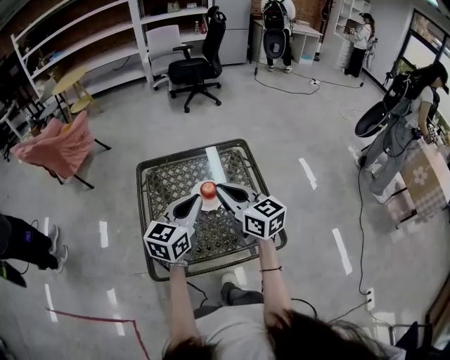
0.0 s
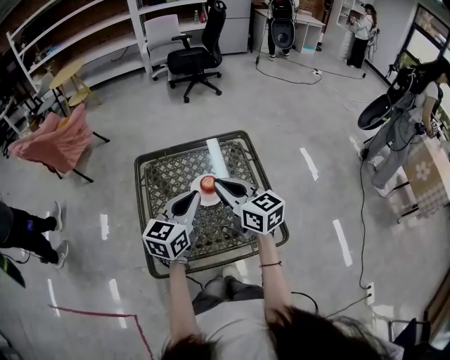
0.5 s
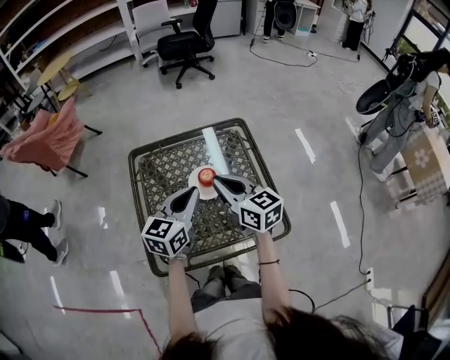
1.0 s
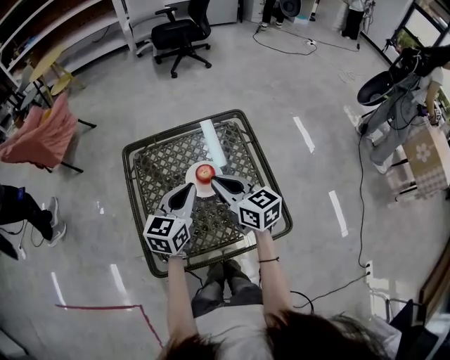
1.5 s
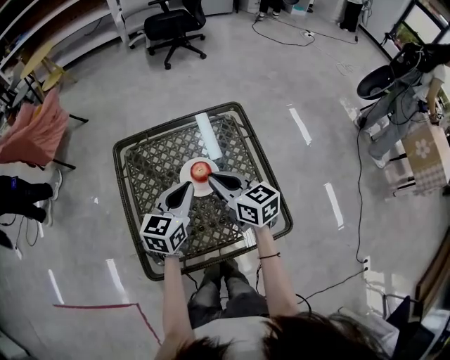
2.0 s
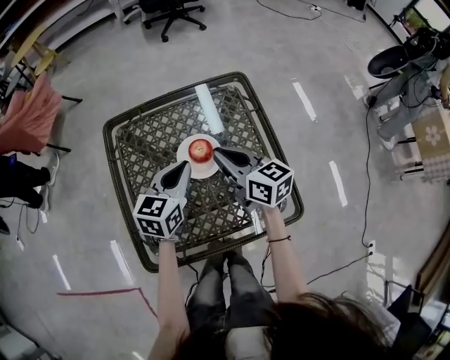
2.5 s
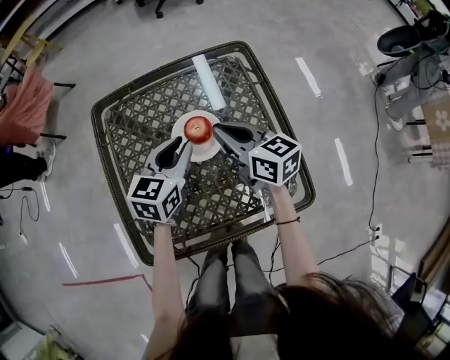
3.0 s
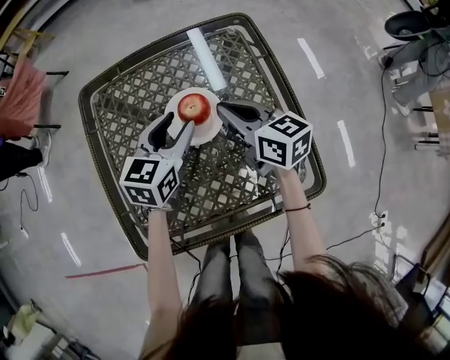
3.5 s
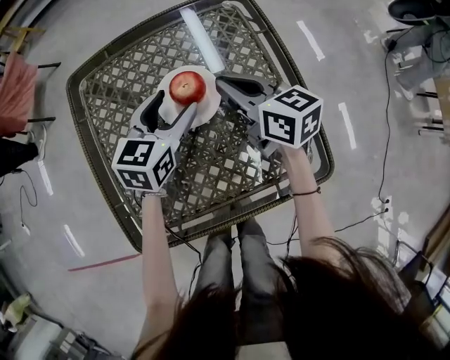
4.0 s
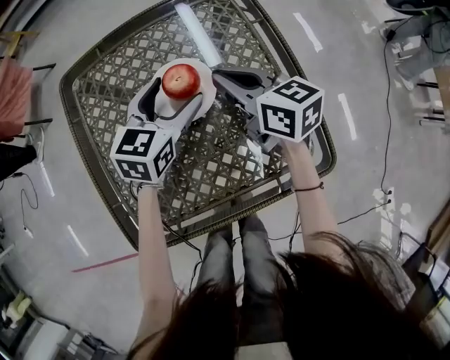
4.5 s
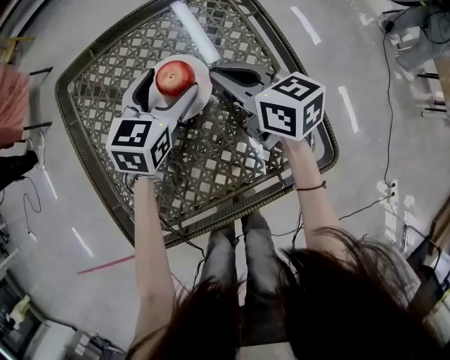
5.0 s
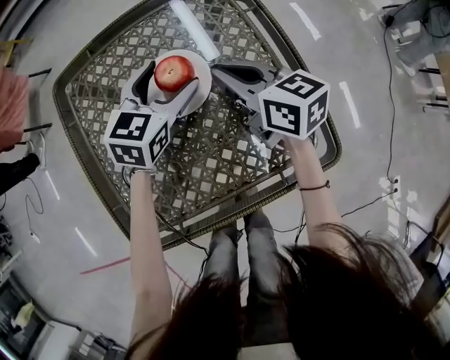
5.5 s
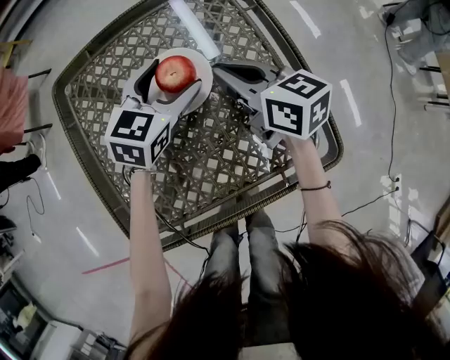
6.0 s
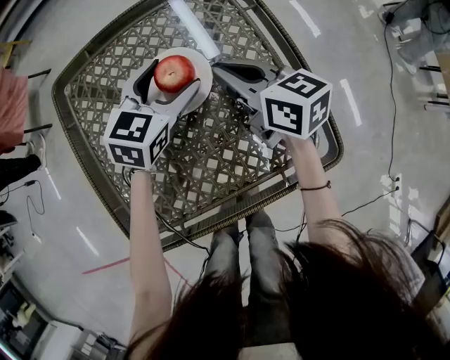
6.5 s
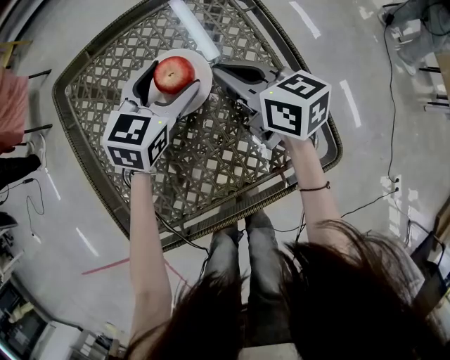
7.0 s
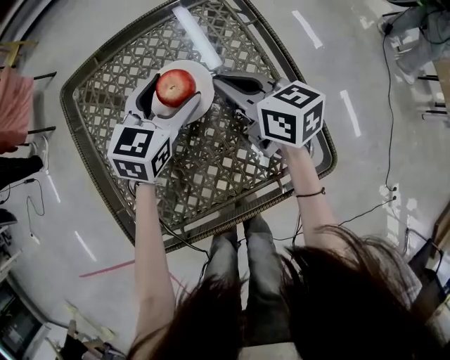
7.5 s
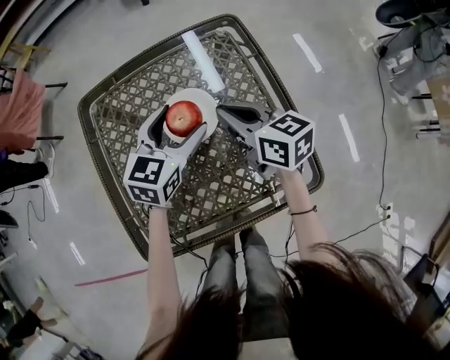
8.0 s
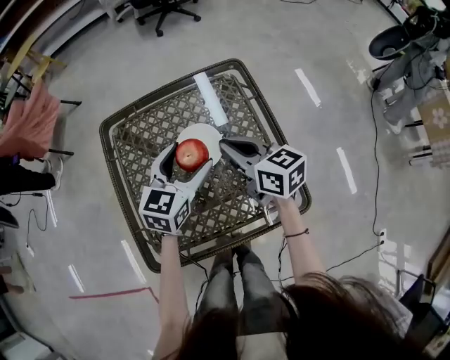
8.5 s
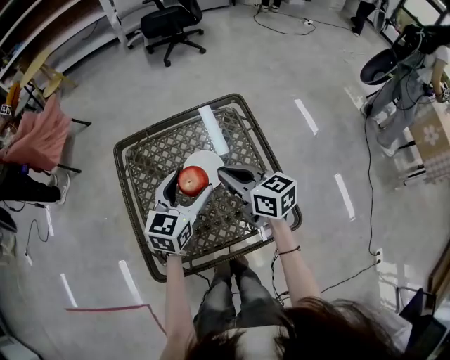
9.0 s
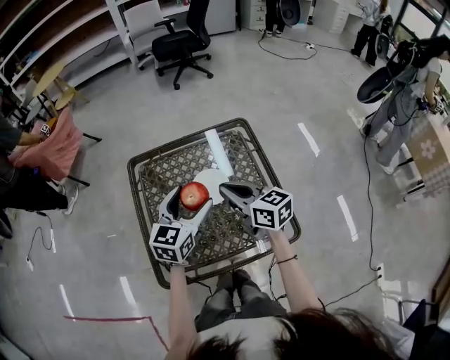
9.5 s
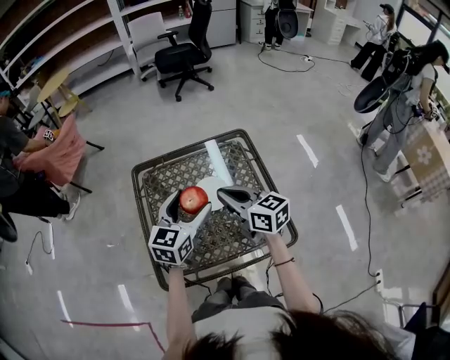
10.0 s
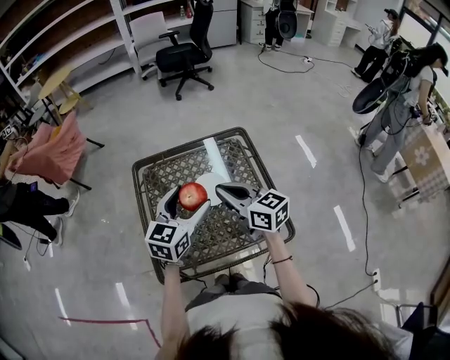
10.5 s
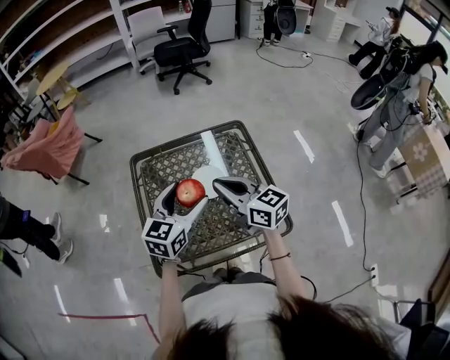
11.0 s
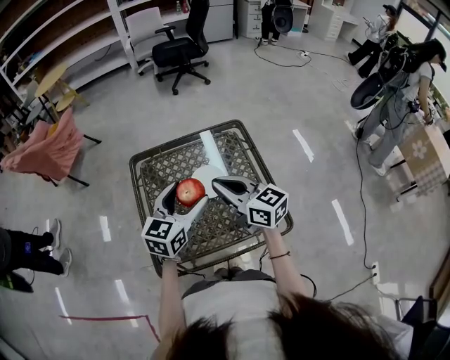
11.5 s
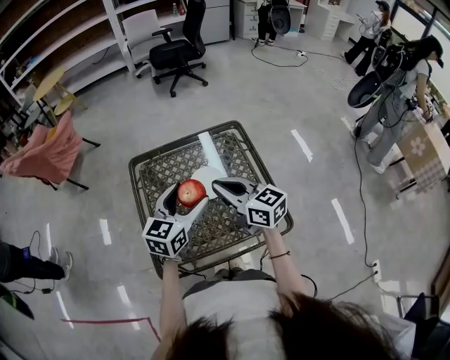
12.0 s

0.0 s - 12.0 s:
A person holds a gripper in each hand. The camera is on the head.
0.0 s - 2.0 s: The grippers both shift downward and forward by some 15 cm.
2.0 s - 4.0 s: The right gripper travels downward and forward by some 15 cm, while the left gripper heads downward, covering about 15 cm, and opens.
4.0 s - 6.0 s: There are only small adjustments of the grippers.
6.0 s - 8.0 s: The left gripper moves upward, some 5 cm.
8.0 s - 10.0 s: The left gripper travels upward and backward by about 20 cm, while the right gripper heads upward, covering roughly 15 cm.
10.0 s - 12.0 s: The grippers make only small movements.

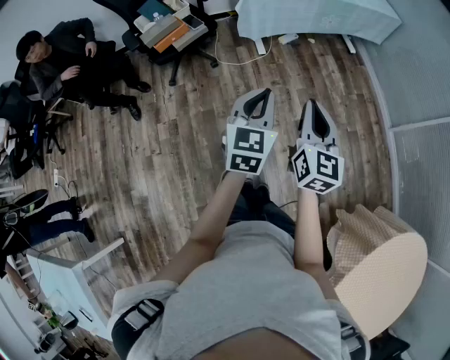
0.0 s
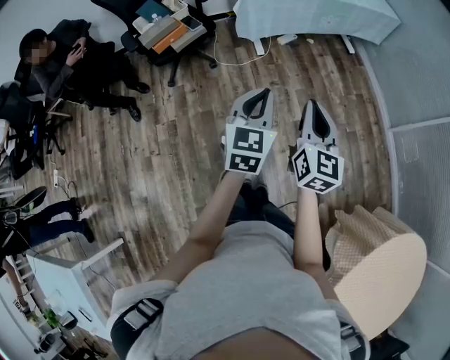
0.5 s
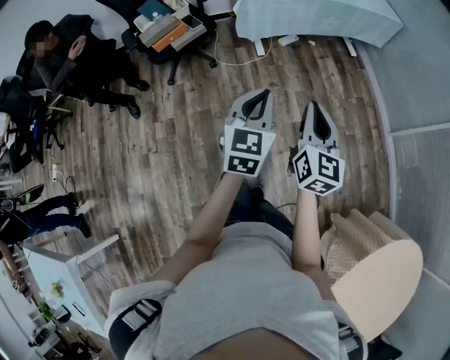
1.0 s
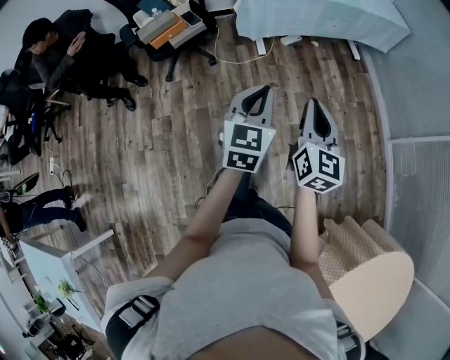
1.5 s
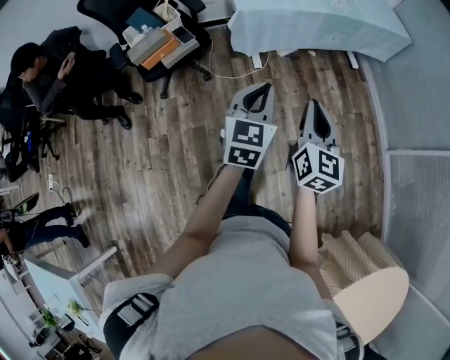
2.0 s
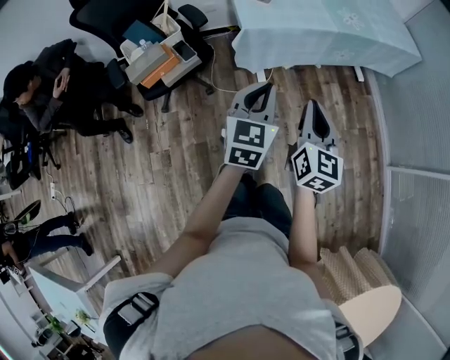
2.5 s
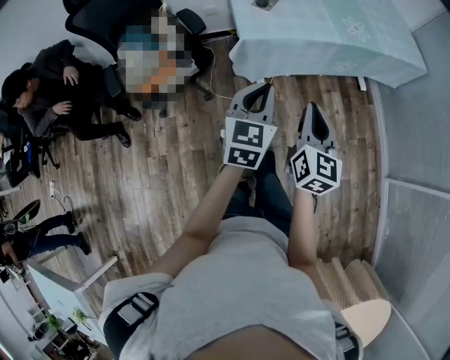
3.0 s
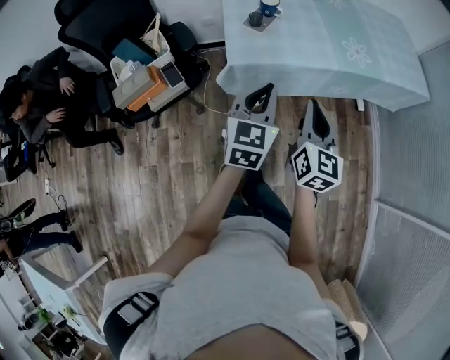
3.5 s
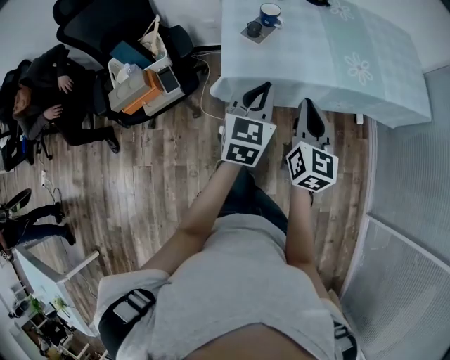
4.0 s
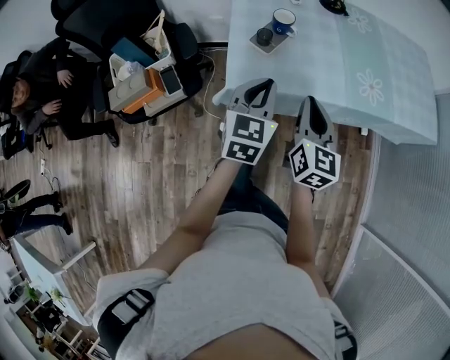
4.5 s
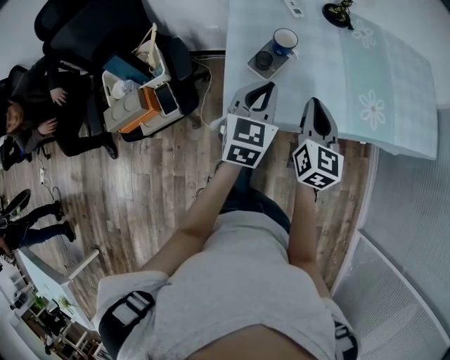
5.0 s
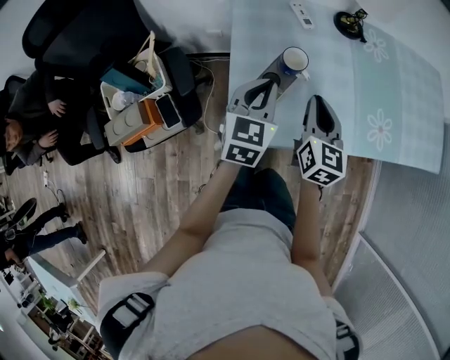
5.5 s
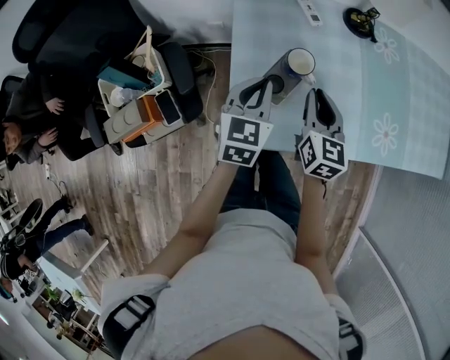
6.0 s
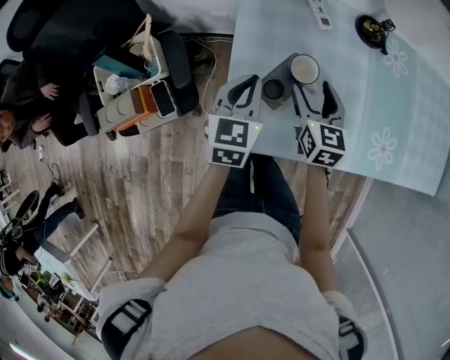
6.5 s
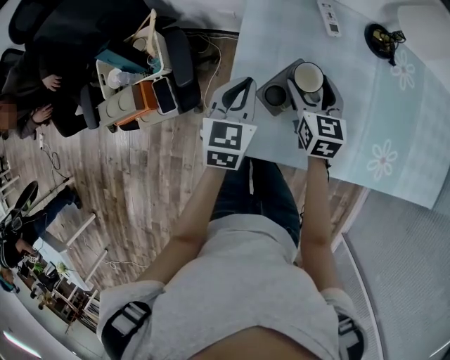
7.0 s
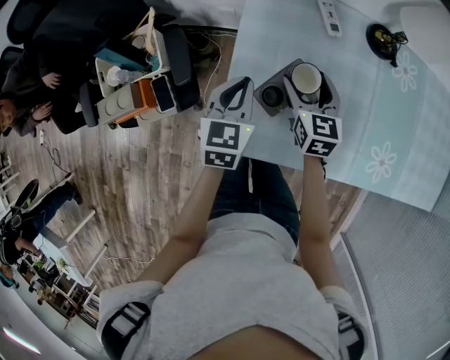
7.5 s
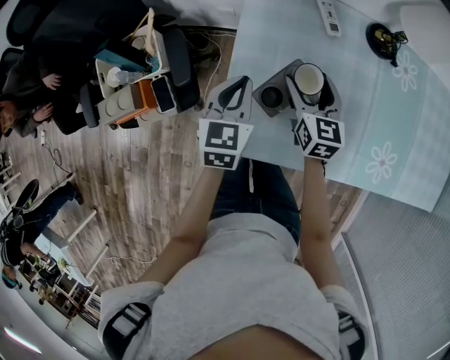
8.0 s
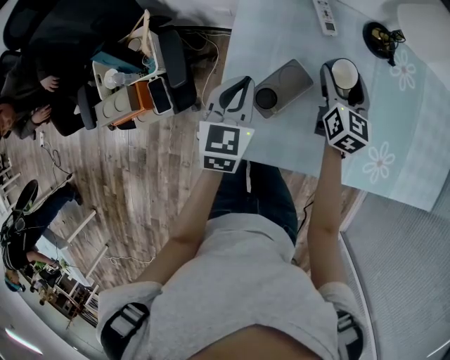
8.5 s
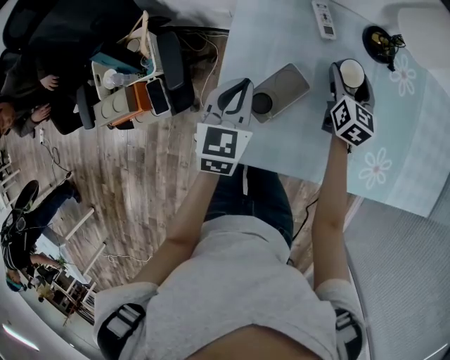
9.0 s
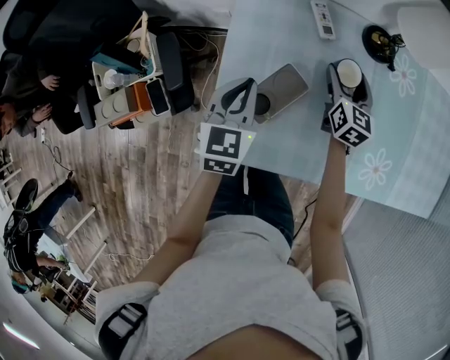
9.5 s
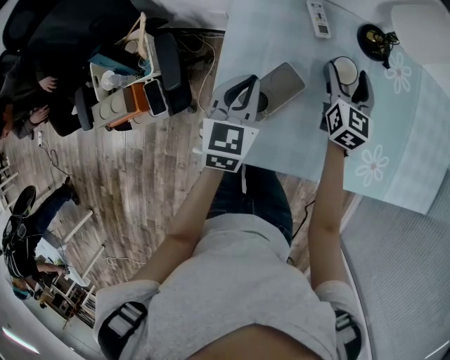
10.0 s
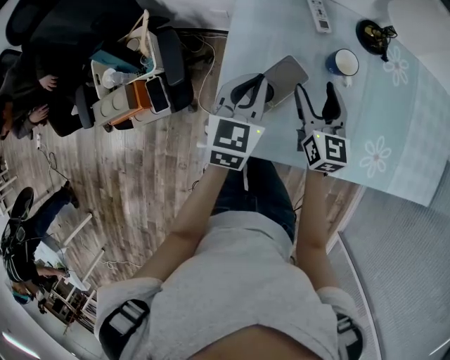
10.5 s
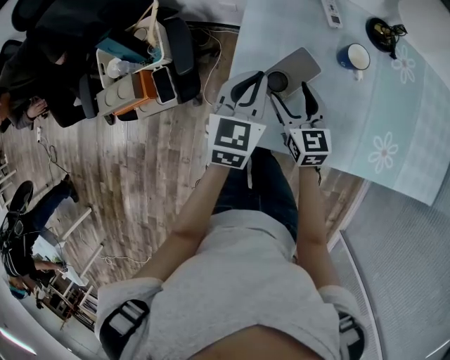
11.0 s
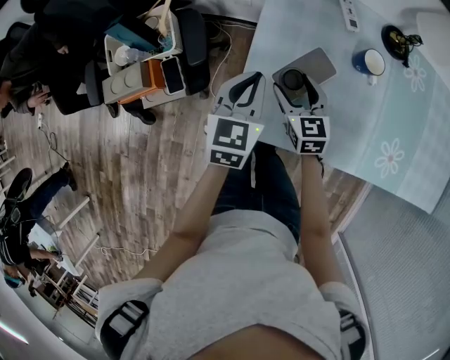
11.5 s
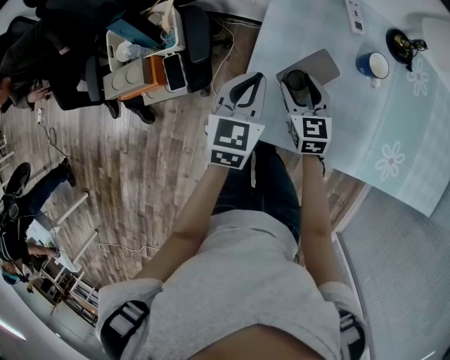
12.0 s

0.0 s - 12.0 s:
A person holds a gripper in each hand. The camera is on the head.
0.0 s - 2.0 s: The two grippers go about 20 cm forward.
2.0 s - 4.0 s: The pair of grippers is taken forward, about 40 cm.
4.0 s - 6.0 s: The two grippers go roughly 30 cm forward.
6.0 s - 8.0 s: The left gripper shifts by some 5 cm; the right gripper goes about 10 cm forward and downward, and opens.
8.0 s - 10.0 s: The right gripper shifts about 15 cm to the right and forward; the left gripper ends up about 5 cm from where it was.
10.0 s - 12.0 s: The left gripper goes roughly 10 cm to the left and backward. The right gripper travels to the left and backward by some 25 cm, and turns by some 30 degrees.

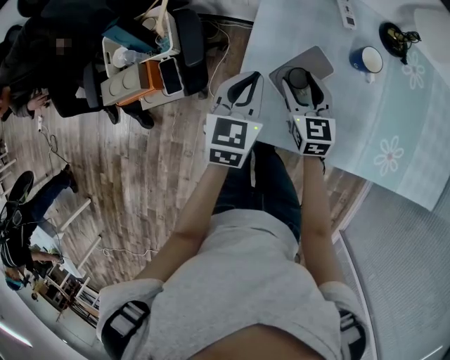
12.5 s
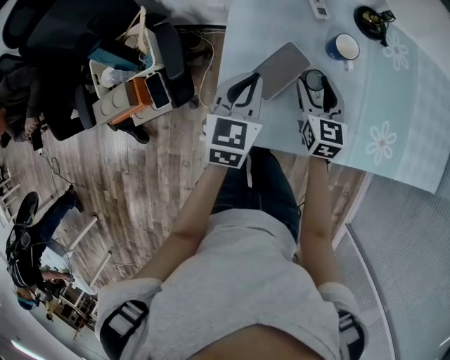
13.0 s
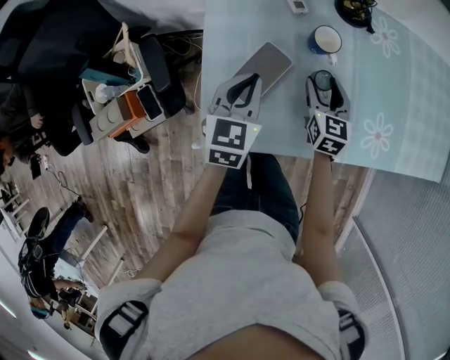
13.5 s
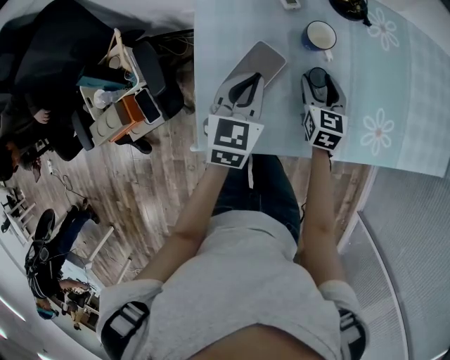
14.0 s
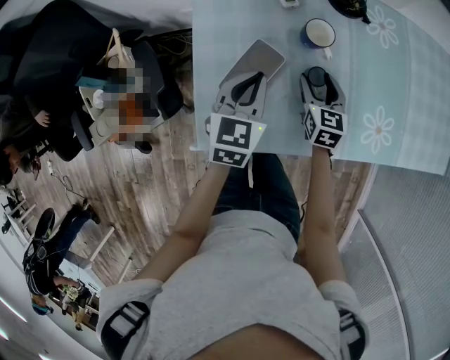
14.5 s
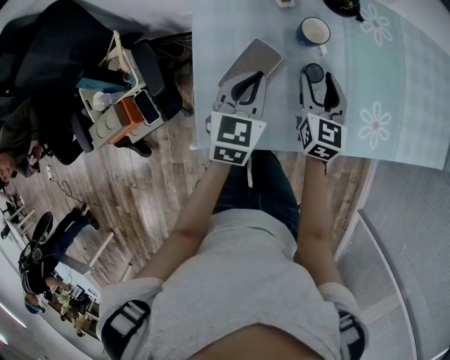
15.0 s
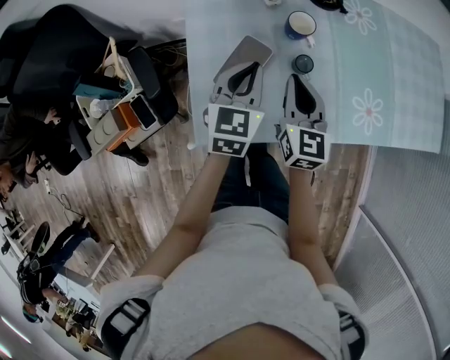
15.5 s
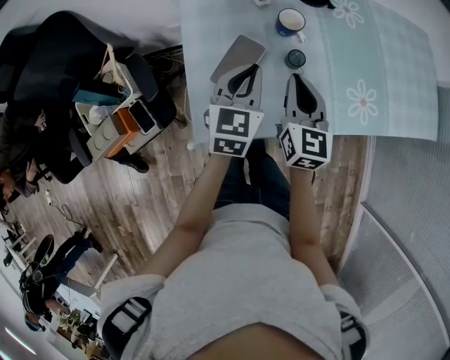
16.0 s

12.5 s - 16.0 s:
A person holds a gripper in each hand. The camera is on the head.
12.5 s - 14.5 s: The right gripper shifts some 20 cm to the right, and rotates roughly 20 degrees. The left gripper is displaced to the right and forward by approximately 15 cm.
14.5 s - 16.0 s: The right gripper goes approximately 20 cm upward and backward, and closes. Meanwhile the left gripper ends up some 5 cm from where it was.
